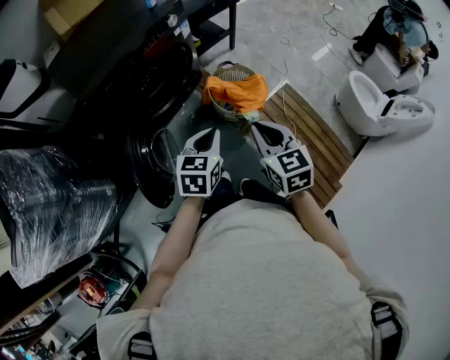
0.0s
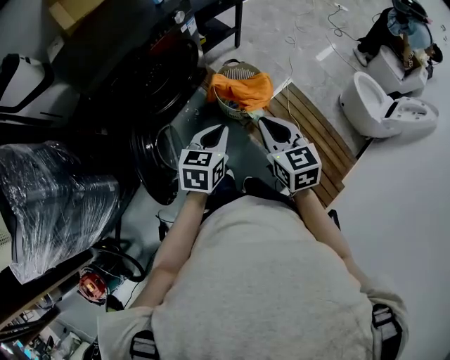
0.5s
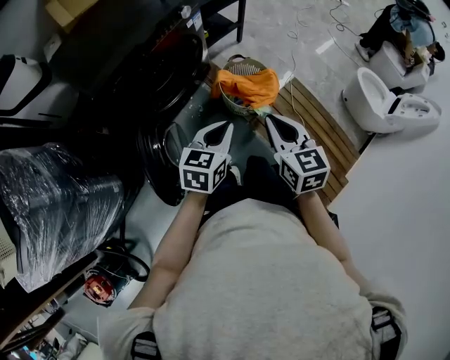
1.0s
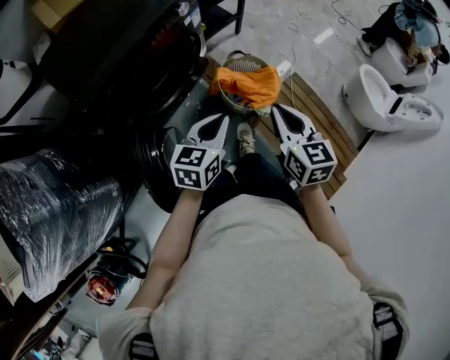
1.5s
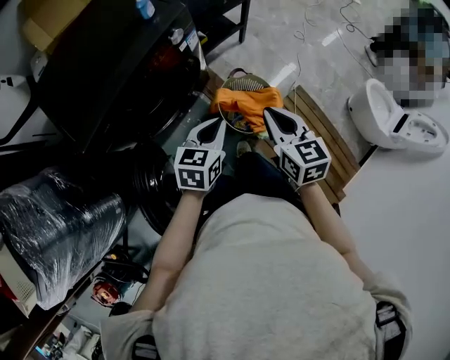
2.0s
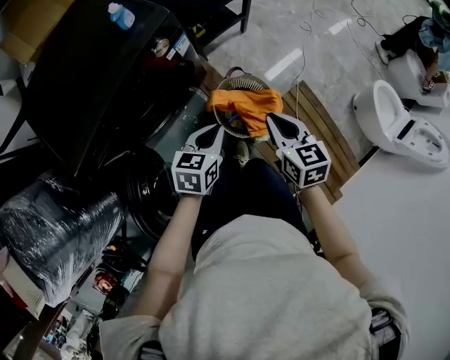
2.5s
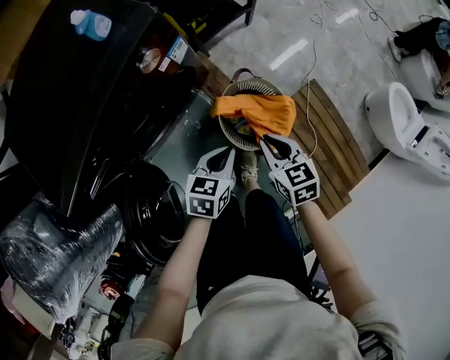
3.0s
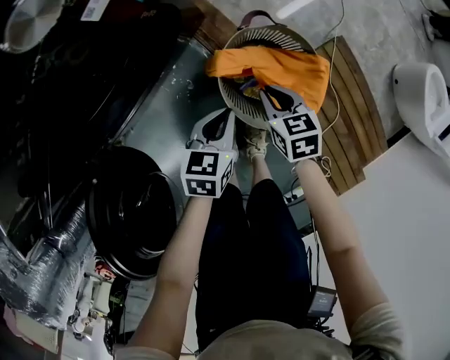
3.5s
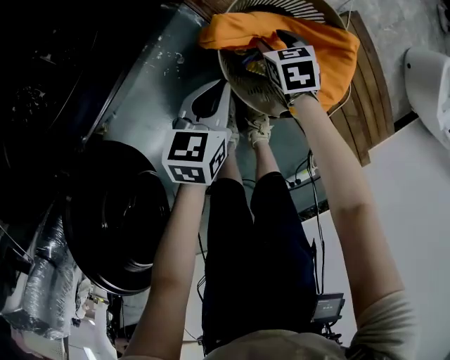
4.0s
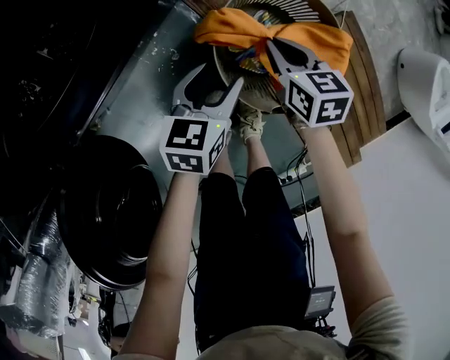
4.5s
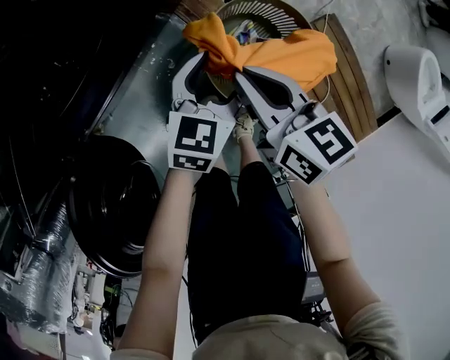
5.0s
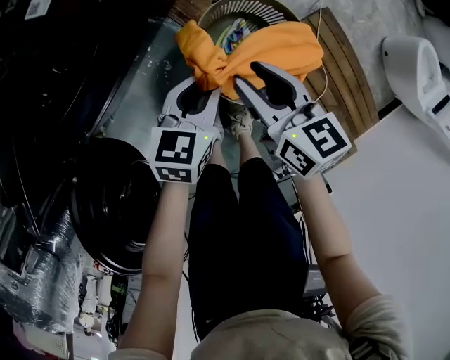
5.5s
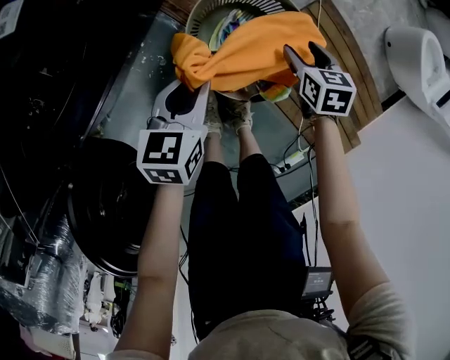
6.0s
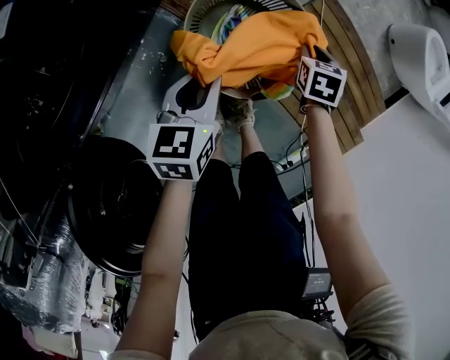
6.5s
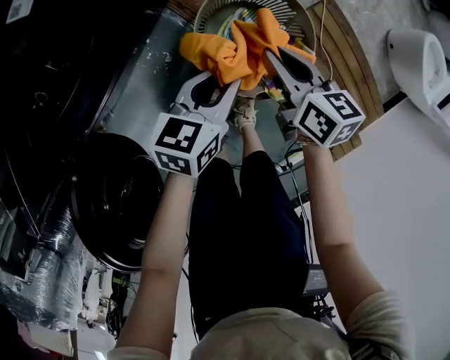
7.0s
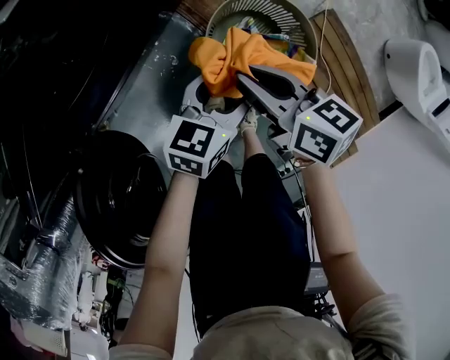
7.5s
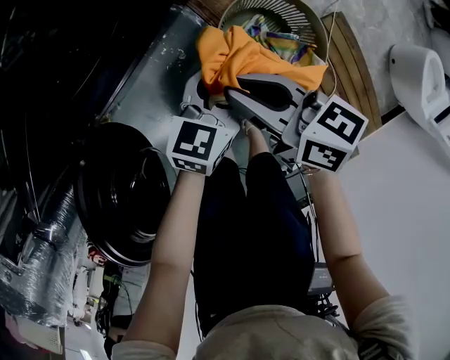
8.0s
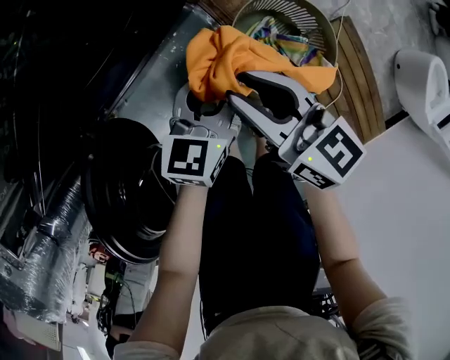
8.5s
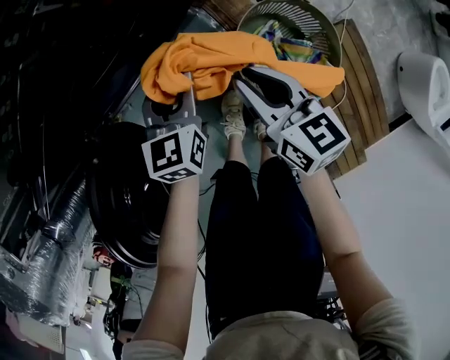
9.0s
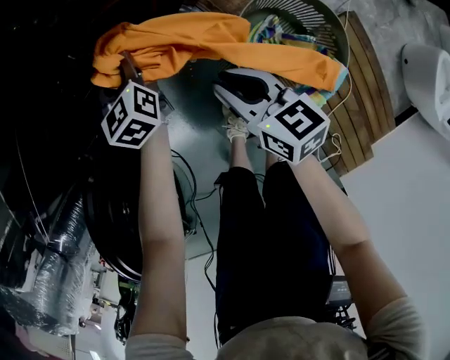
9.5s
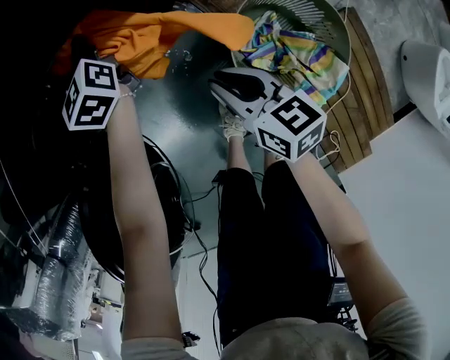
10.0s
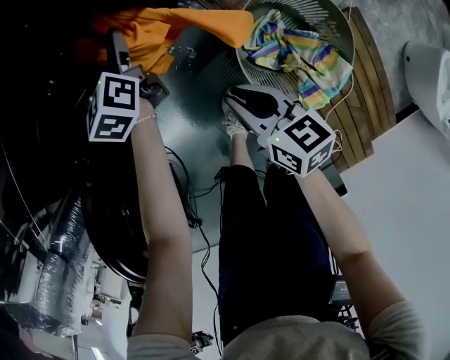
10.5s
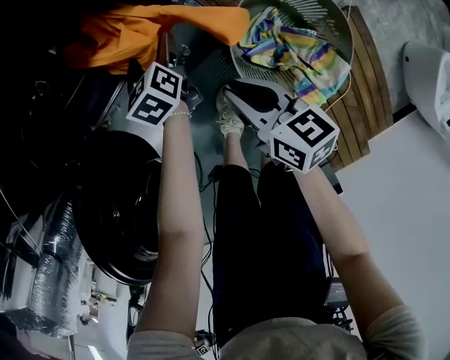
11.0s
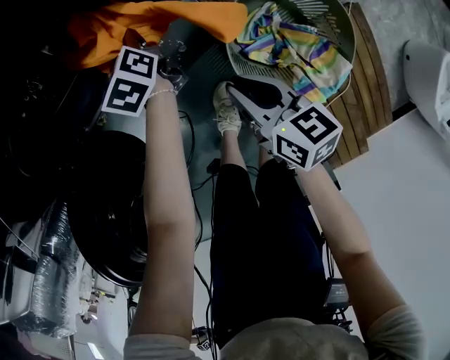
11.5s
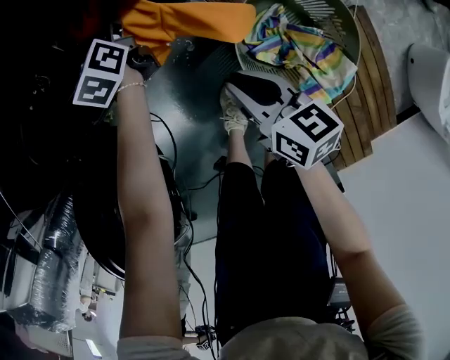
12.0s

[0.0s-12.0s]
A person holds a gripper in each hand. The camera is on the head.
0.0s to 2.0s: The two grippers go approximately 25 cm forward.
2.0s to 4.0s: The two grippers go about 50 cm downward. The right gripper tilts its fingers about 40 degrees downward, and opens up.
4.0s to 6.0s: The left gripper moves upward, some 10 cm, and opens and closes again; the right gripper moves to the right and upward, some 20 cm, and closes, then opens again.
6.0s to 8.0s: The left gripper opens its fingers. The right gripper ends up some 30 cm from where it was, points its fingers approximately 40 degrees further upward, and closes its fingers.
8.0s to 10.0s: The right gripper goes some 15 cm downward. The left gripper ends up about 40 cm from where it was, and swivels about 60 degrees.
10.0s to 12.0s: The left gripper shifts approximately 5 cm downward, and goes backward and returns, about 15 cm each way.

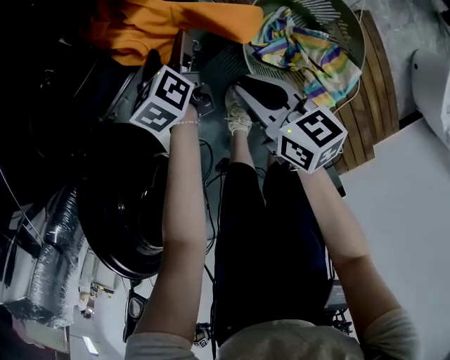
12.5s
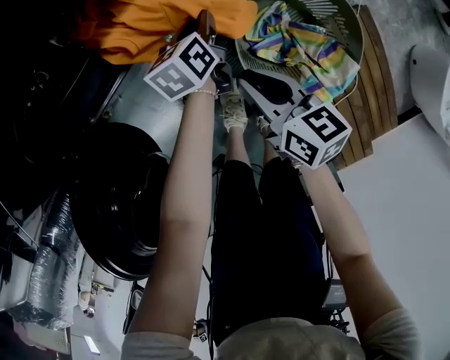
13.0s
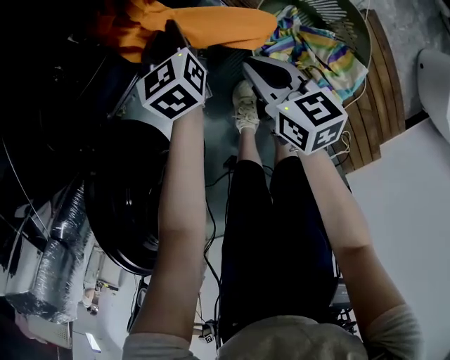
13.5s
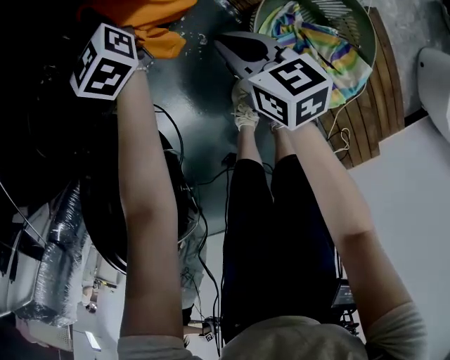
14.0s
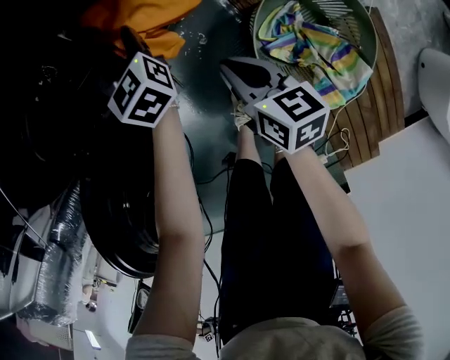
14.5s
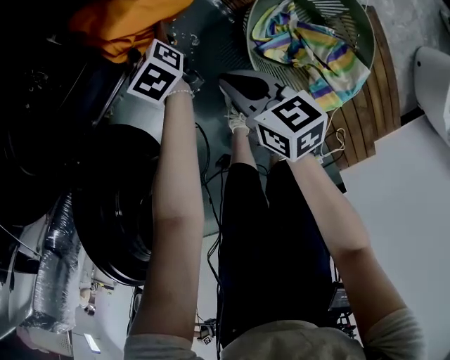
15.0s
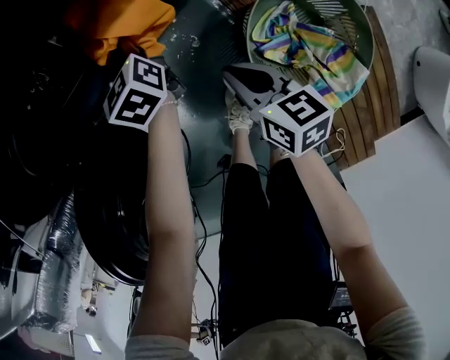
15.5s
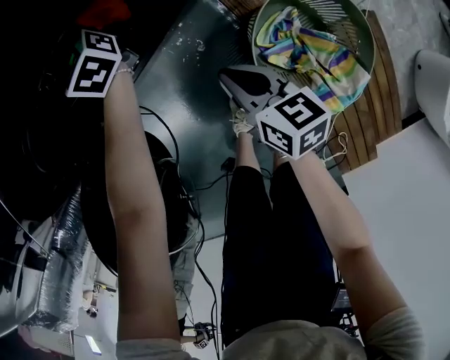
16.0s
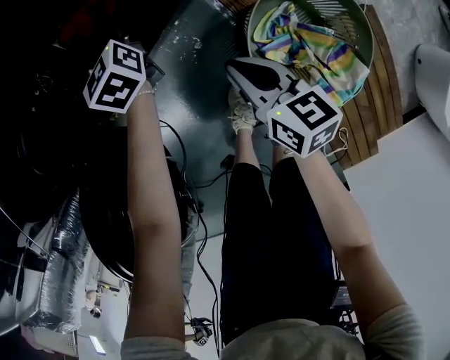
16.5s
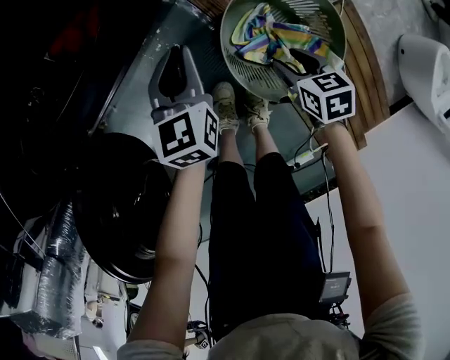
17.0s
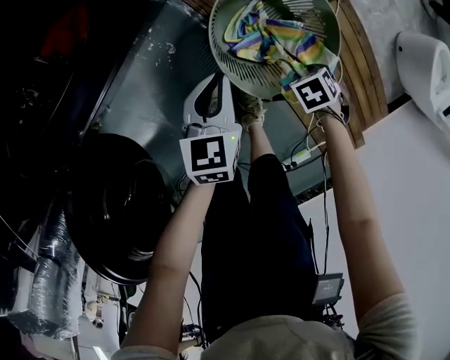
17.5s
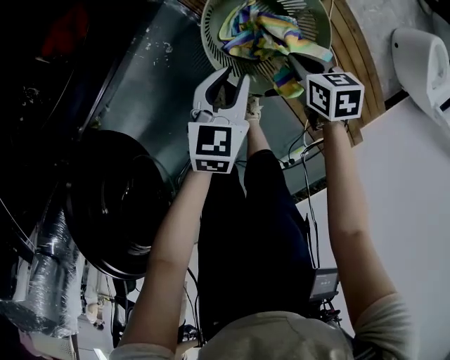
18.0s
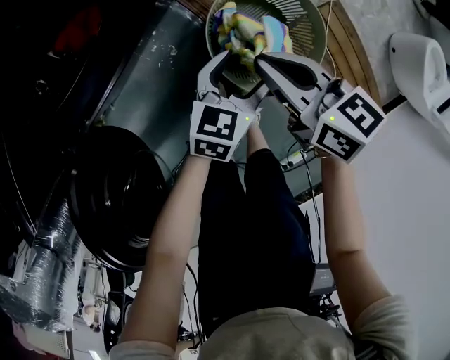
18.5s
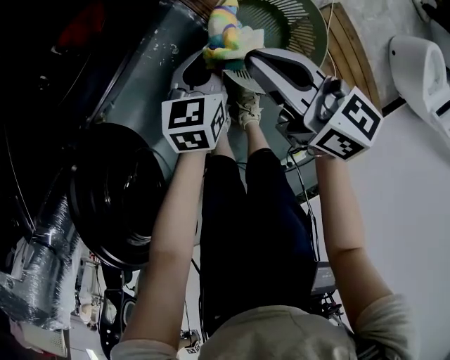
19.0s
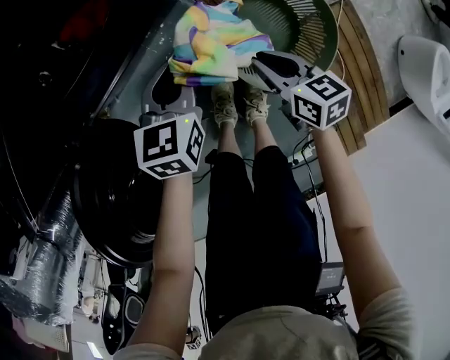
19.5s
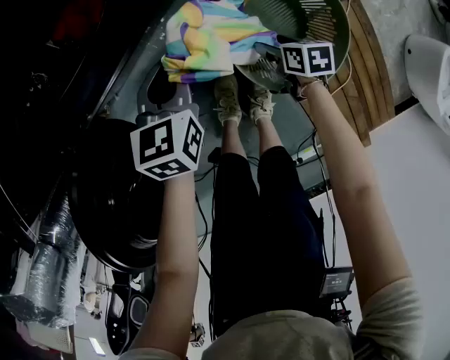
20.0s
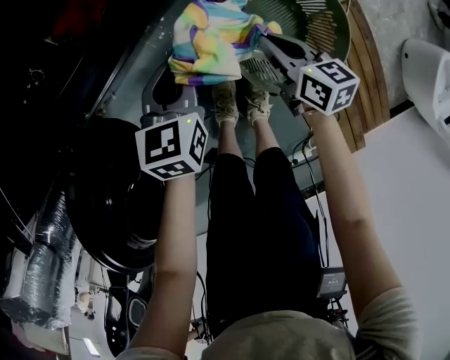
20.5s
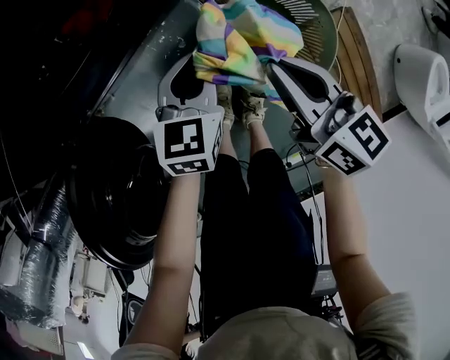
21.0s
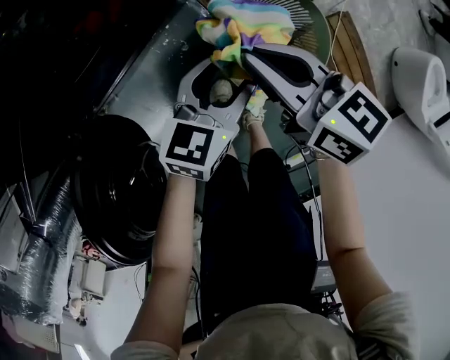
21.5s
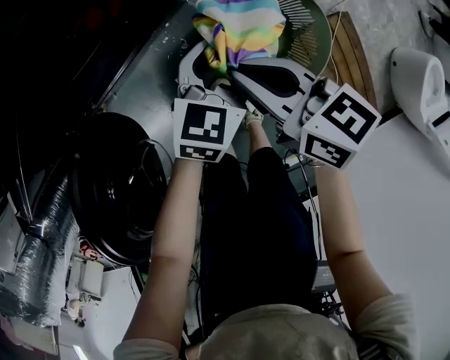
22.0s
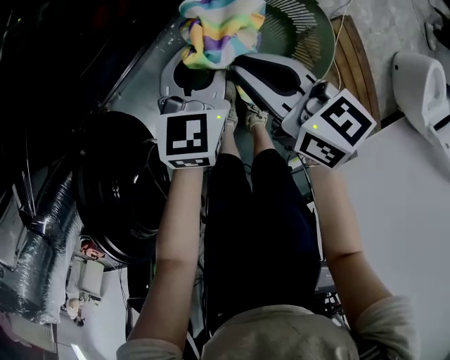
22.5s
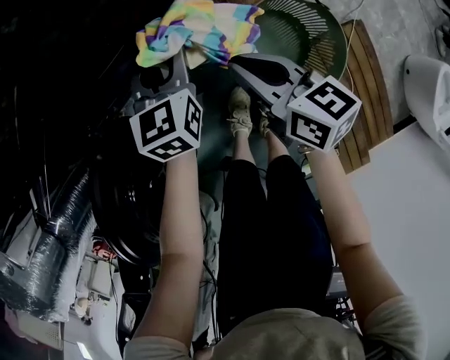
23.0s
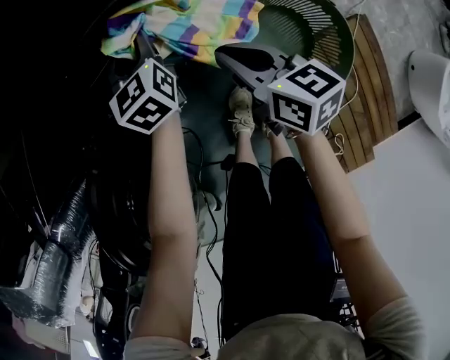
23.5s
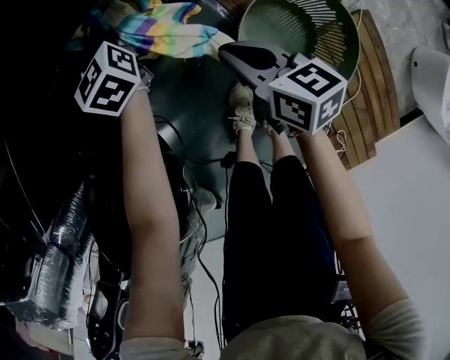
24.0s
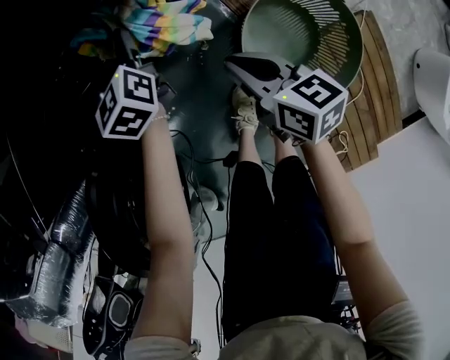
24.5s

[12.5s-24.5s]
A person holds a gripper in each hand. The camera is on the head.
12.5s to 14.5s: The left gripper rotates about 40 degrees, and closes, then reopens.
14.5s to 16.5s: The left gripper swings forward and backward, about 15 cm each way, with 2 reversals, and closes, then reopens.
16.5s to 18.5s: The left gripper ends up approximately 40 cm from where it was, rotates roughly 60 degrees, and closes, then reopens. The right gripper heads upward, covering about 10 cm, and opens, then closes again.
18.5s to 20.5s: The right gripper is displaced downward by roughly 15 cm, and opens, then closes once more; the left gripper ends up approximately 20 cm from where it was, rotates approximately 30 degrees, and closes up.
20.5s to 22.5s: The left gripper shifts roughly 10 cm upward and to the right, and opens and closes again. Meanwhile the right gripper moves upward and to the left, approximately 20 cm.
22.5s to 24.5s: The left gripper ends up roughly 25 cm from where it was, turns by some 40 degrees, and opens up. Meanwhile the right gripper shifts roughly 10 cm downward.

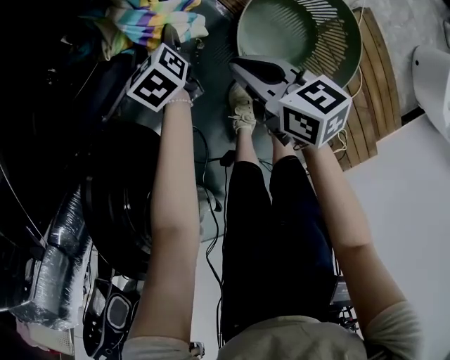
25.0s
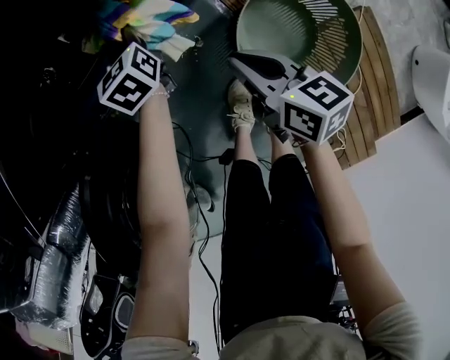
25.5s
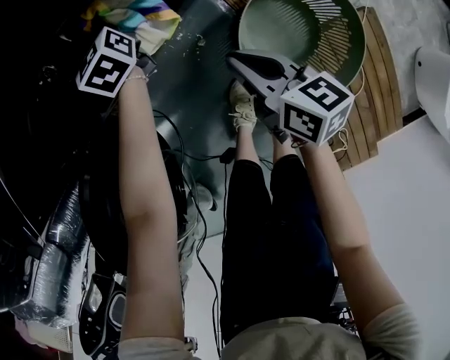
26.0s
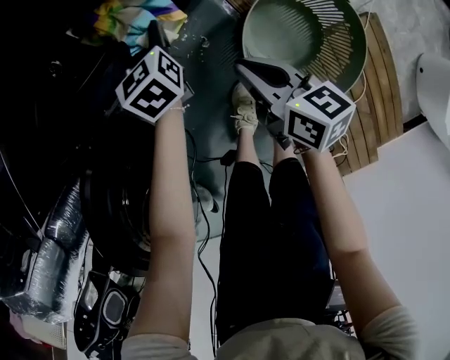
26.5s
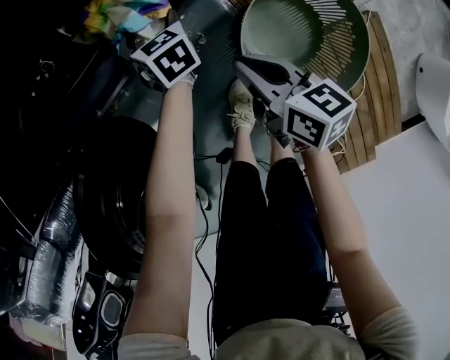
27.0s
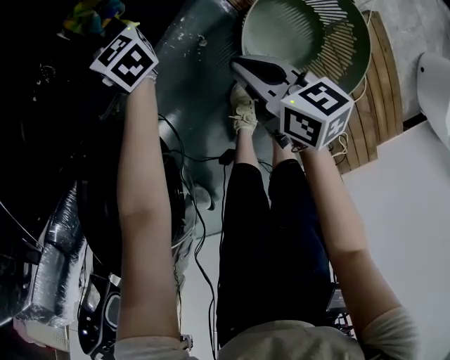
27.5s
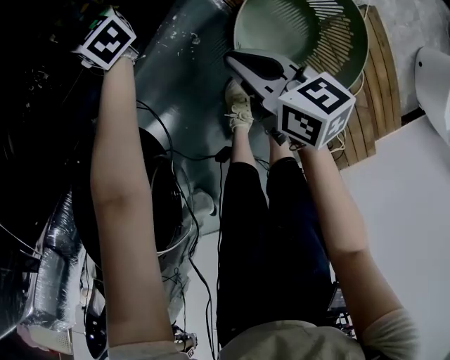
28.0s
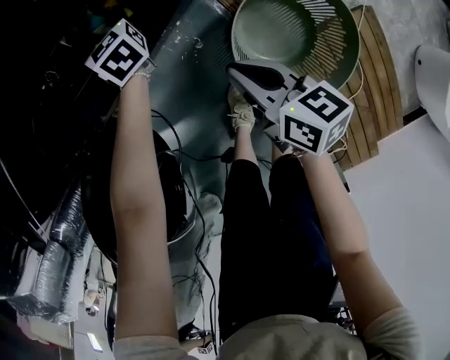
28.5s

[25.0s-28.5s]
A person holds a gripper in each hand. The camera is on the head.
25.0s to 27.0s: The left gripper goes forward and returns, about 10 cm each way, changes its angle by roughly 20 degrees, and closes, then opens again.
27.0s to 28.5s: The left gripper goes some 10 cm forward and upward, and closes and opens again.
